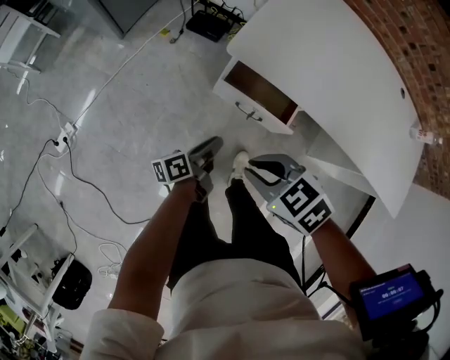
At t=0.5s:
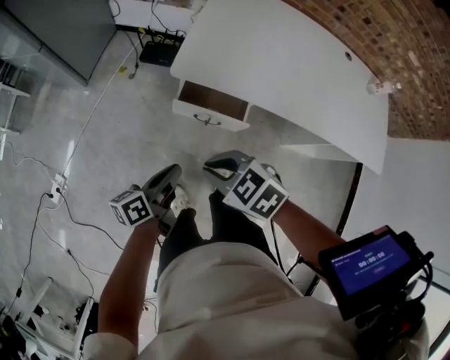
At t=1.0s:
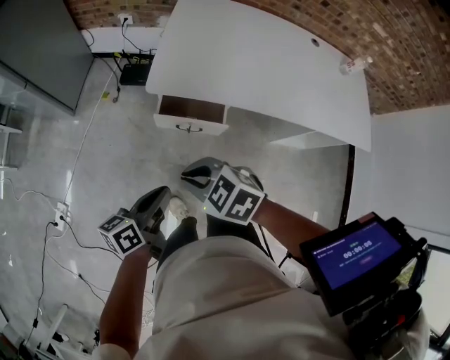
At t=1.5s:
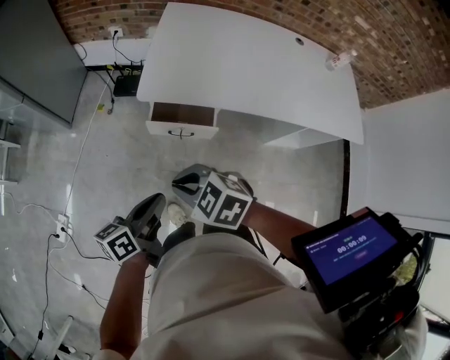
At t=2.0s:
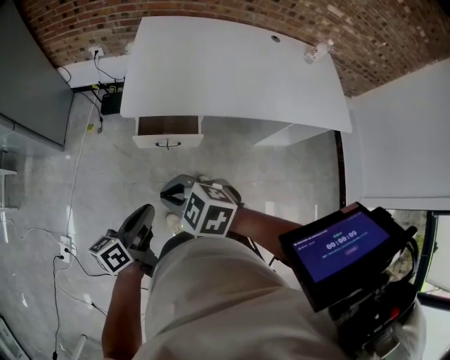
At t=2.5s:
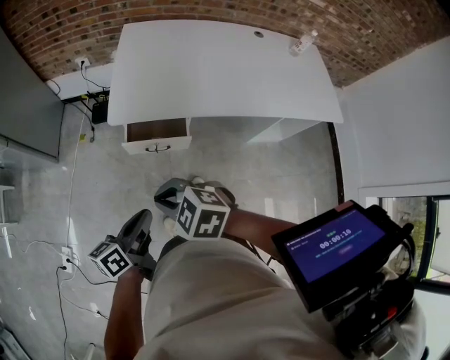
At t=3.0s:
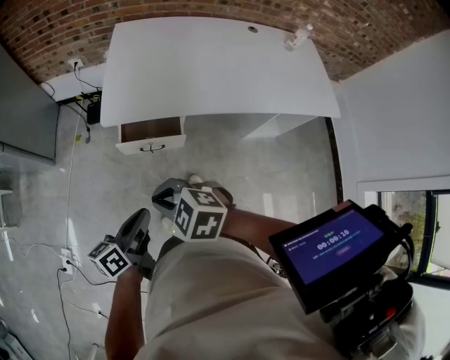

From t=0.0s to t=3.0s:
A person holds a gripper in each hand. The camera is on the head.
From t=0.0s to t=1.5s: The left gripper is displaced upward and backward by roughly 25 cm, and changes its angle by some 30 degrees. The right gripper heads upward, covering about 10 cm.
From t=1.5s to t=3.0s: The grippers stay close to where they were, moving slightly.

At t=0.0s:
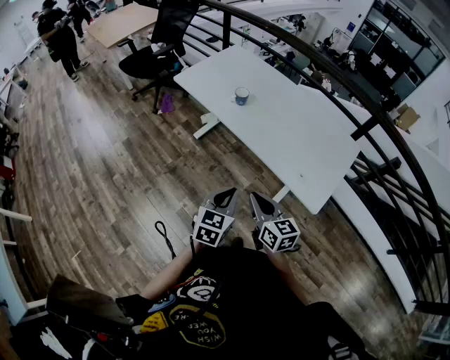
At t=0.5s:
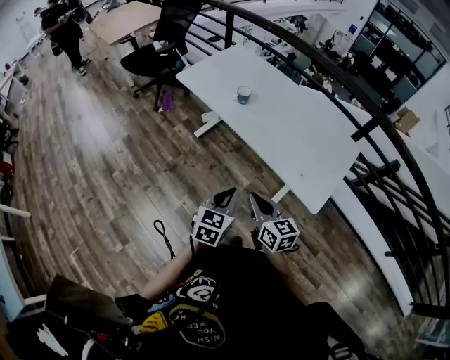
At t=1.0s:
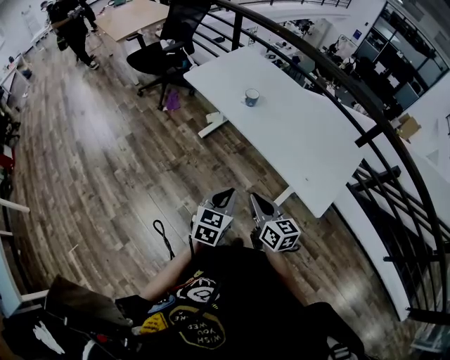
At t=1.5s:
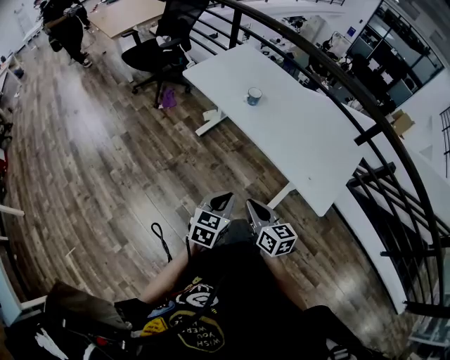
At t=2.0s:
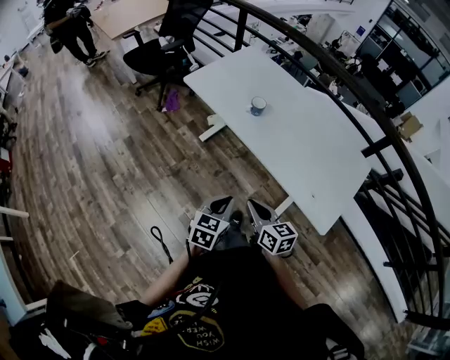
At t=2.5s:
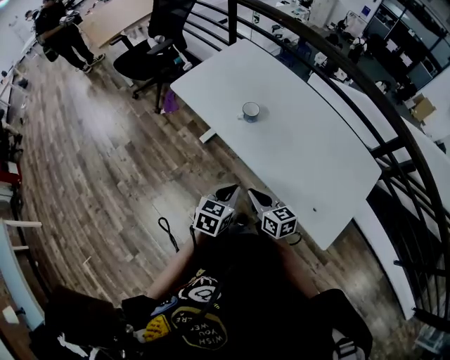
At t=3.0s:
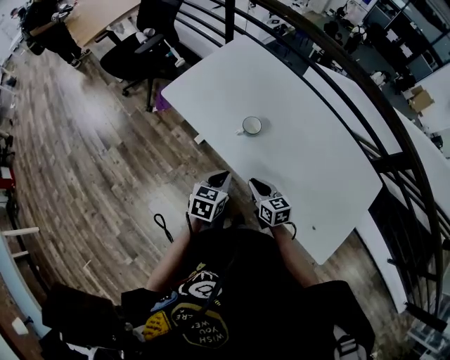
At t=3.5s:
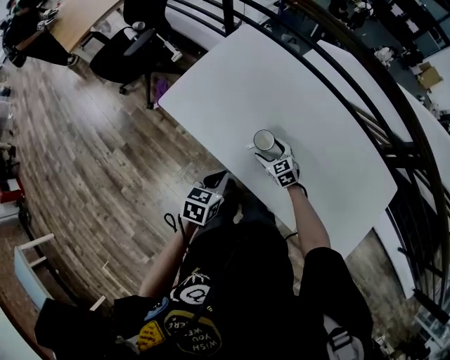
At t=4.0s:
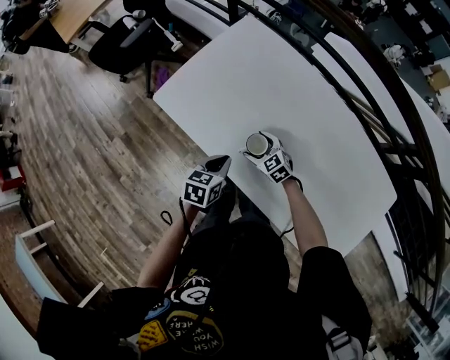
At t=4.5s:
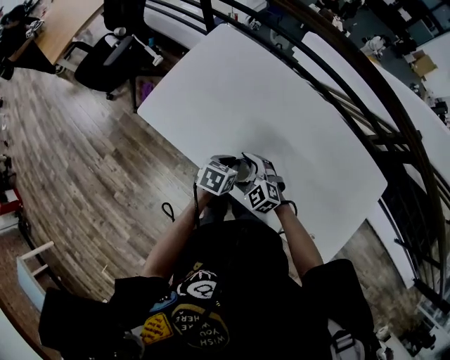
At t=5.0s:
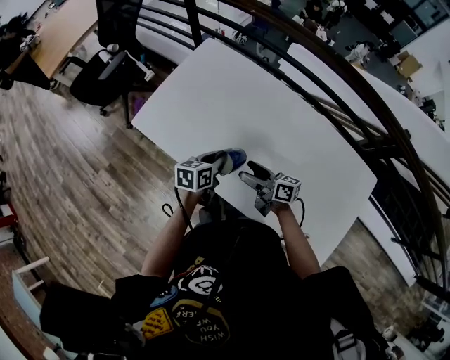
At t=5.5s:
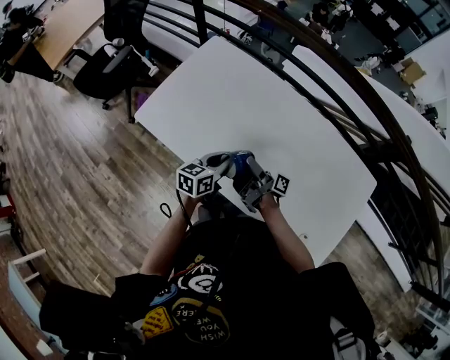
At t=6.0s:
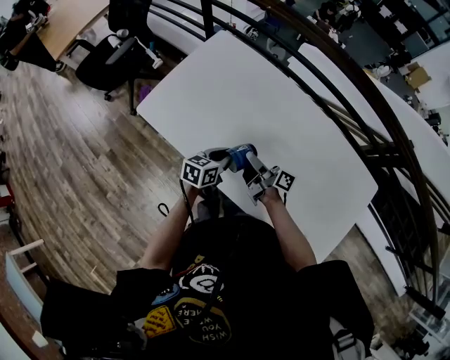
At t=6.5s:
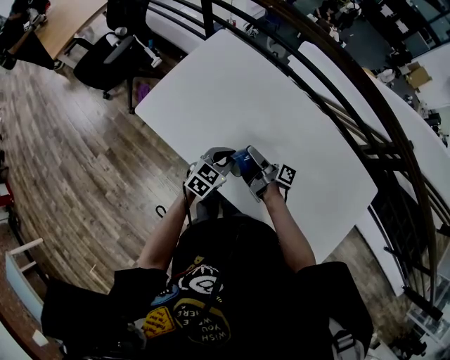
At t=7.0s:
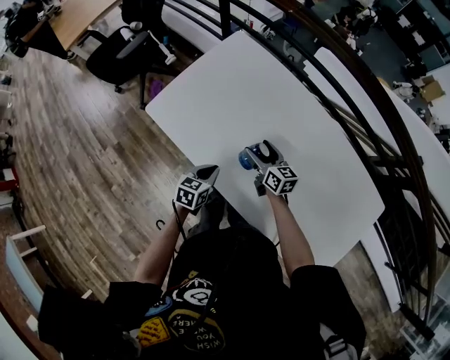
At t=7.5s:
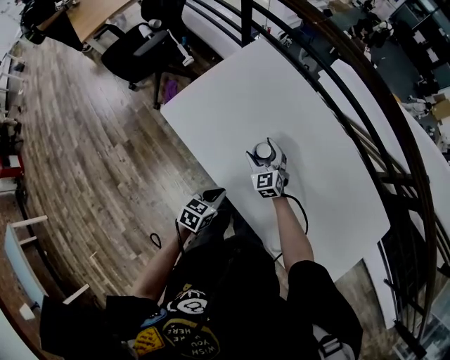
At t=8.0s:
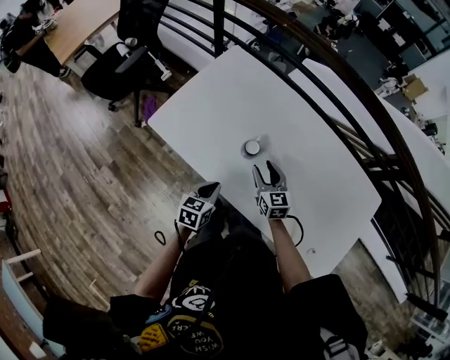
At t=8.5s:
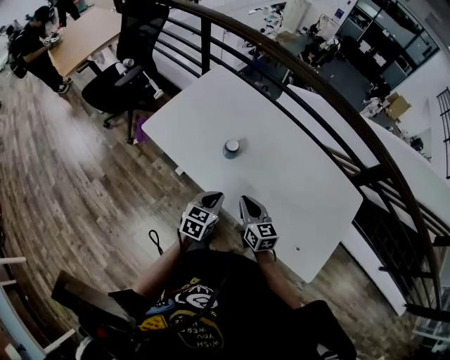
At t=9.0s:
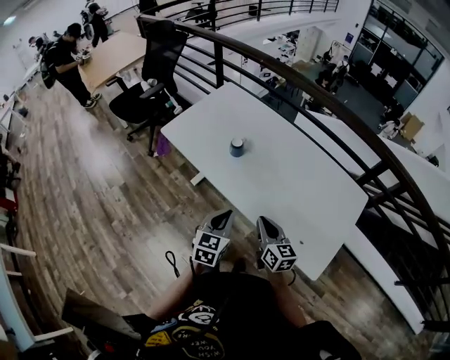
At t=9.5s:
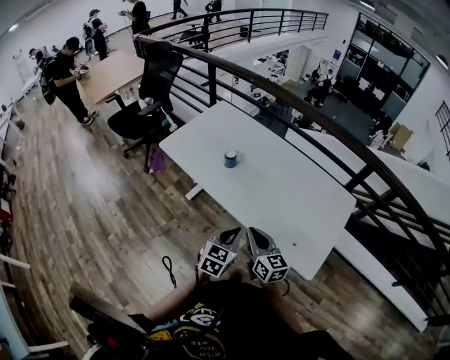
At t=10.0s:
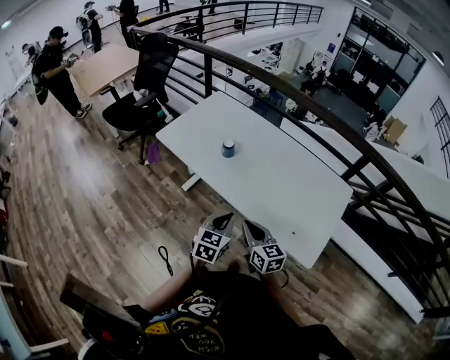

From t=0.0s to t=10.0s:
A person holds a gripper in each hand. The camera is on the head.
From t=0.0s to t=2.0s: The right gripper goes about 15 cm forward, to the left and downward; the left gripper shifts some 15 cm to the left, forward and downward.
From t=2.0s to t=4.0s: The two grippers travel together, forward, roughly 50 cm. The right gripper travels downward by about 25 cm, rotates about 40 degrees, and opens up.
From t=4.0s to t=6.0s: The right gripper is displaced upward and to the right by roughly 15 cm, and twists some 80 degrees clockwise, seen from behind. Meanwhile the left gripper travels to the right by some 10 cm.
From t=6.0s to t=8.0s: The left gripper travels to the left and backward by approximately 15 cm; the right gripper reaches about 10 cm downward, then returns, rotates around the line of its fingers by some 70 degrees, counterclockwise from behind, and closes its fingers.
From t=8.0s to t=10.0s: The right gripper moves backward, some 40 cm, and closes, while the left gripper shifts approximately 40 cm backward, upward and to the right, and turns by about 20 degrees.

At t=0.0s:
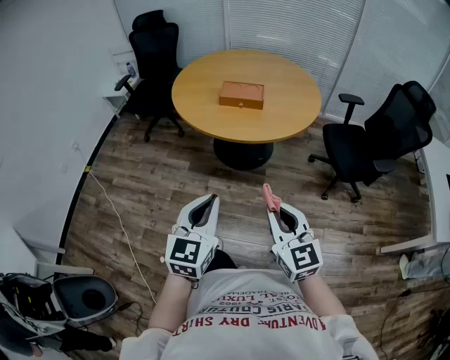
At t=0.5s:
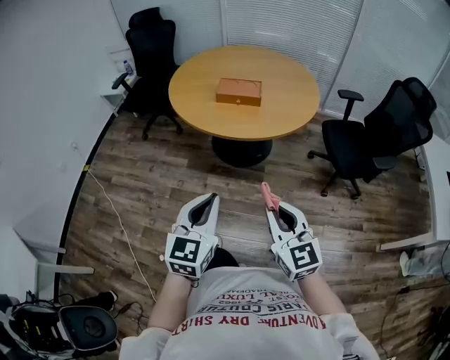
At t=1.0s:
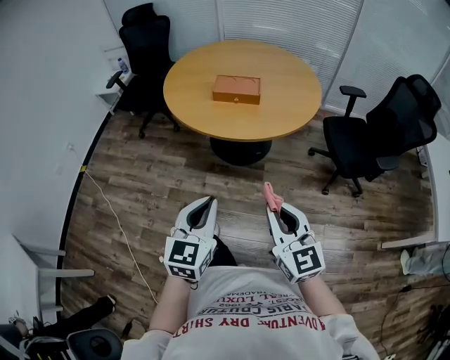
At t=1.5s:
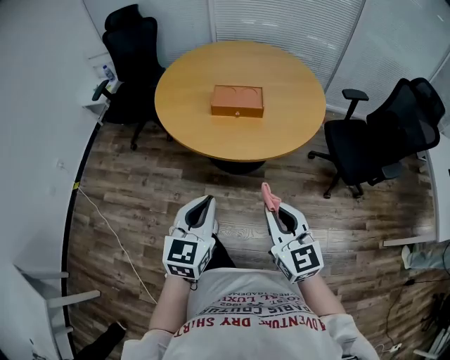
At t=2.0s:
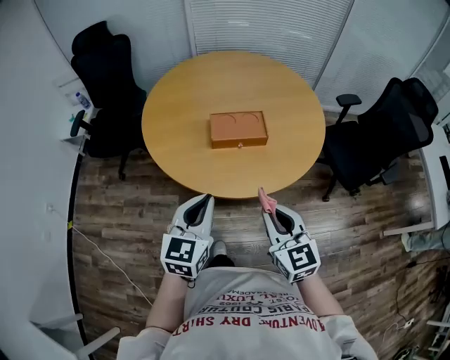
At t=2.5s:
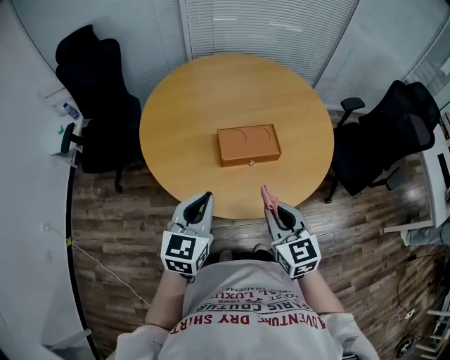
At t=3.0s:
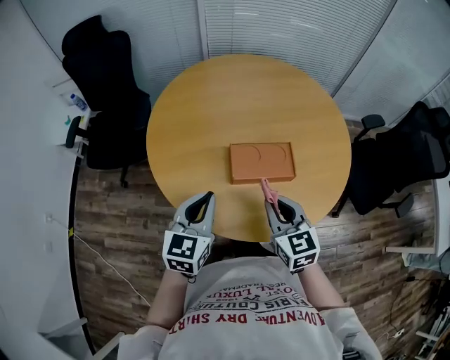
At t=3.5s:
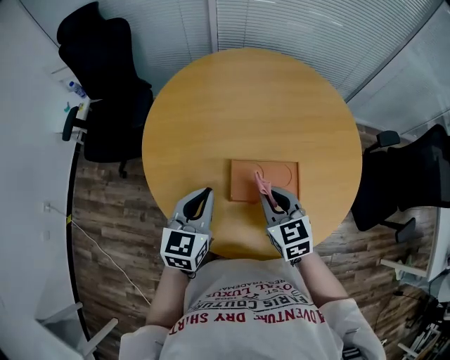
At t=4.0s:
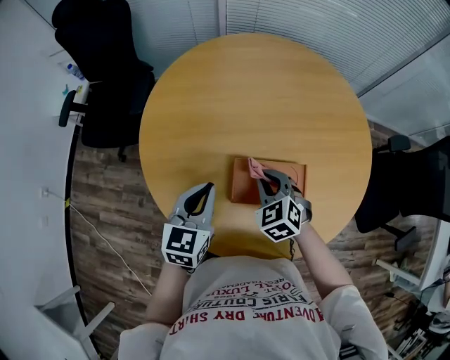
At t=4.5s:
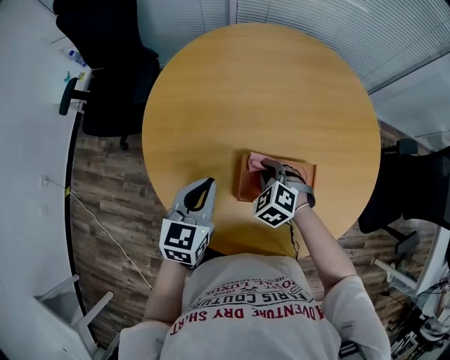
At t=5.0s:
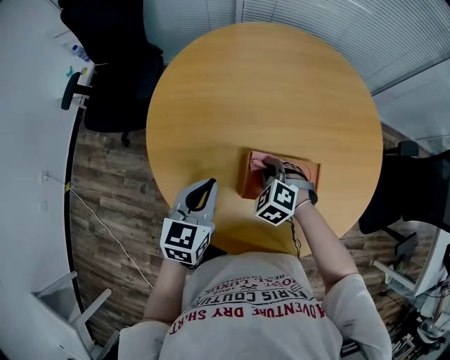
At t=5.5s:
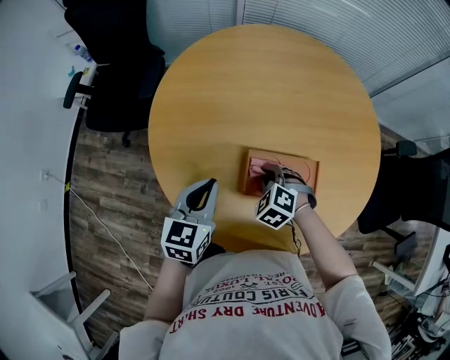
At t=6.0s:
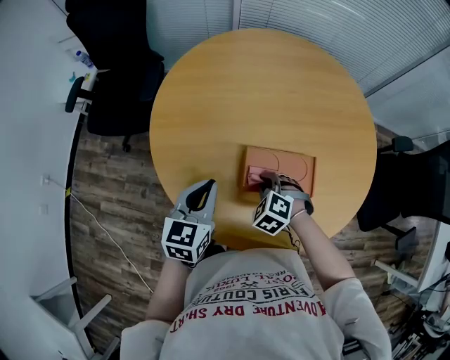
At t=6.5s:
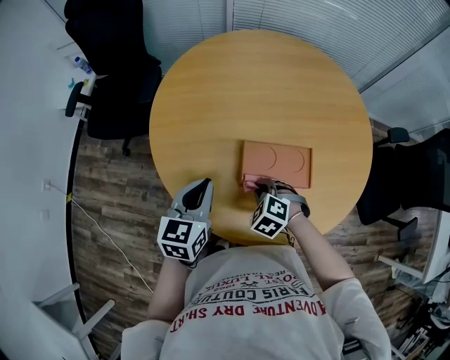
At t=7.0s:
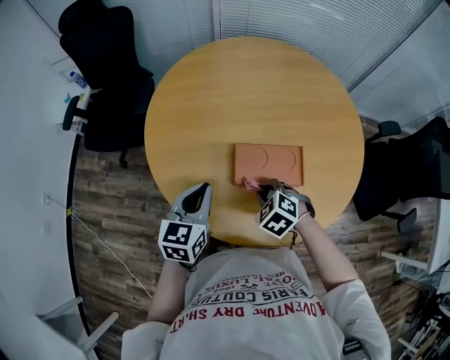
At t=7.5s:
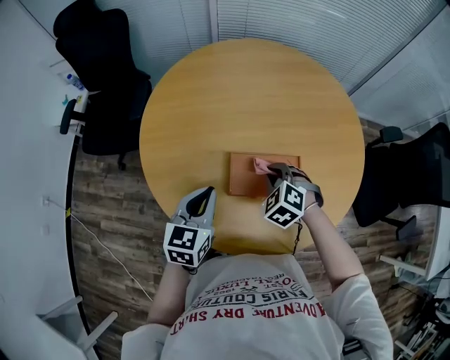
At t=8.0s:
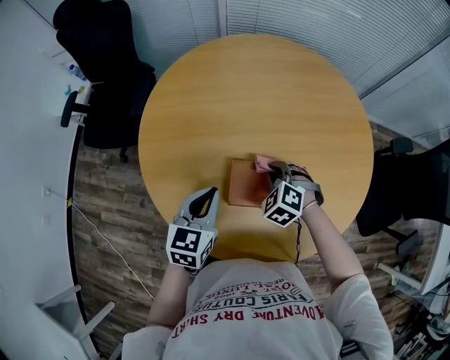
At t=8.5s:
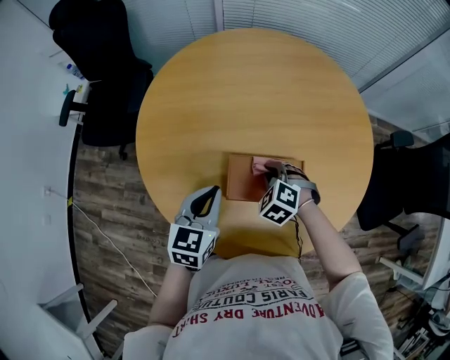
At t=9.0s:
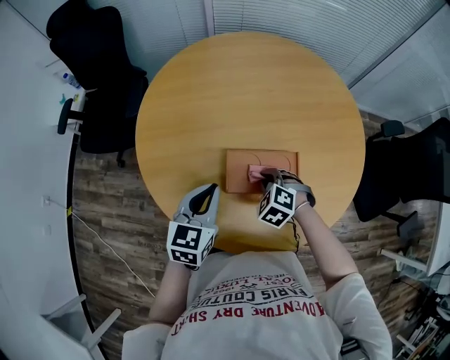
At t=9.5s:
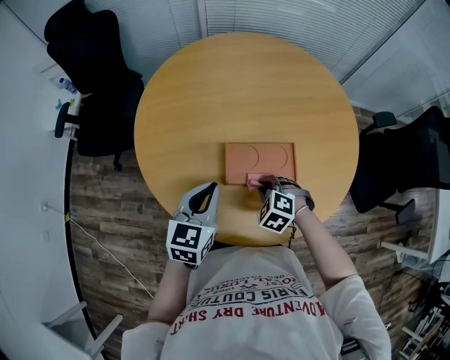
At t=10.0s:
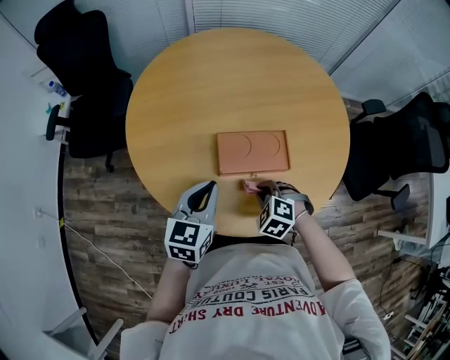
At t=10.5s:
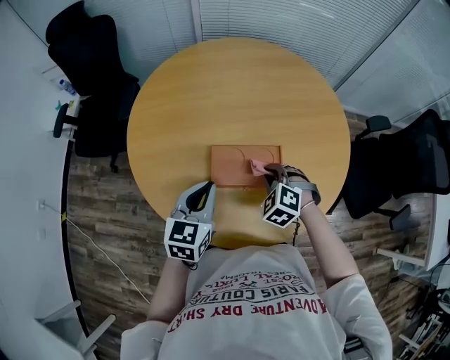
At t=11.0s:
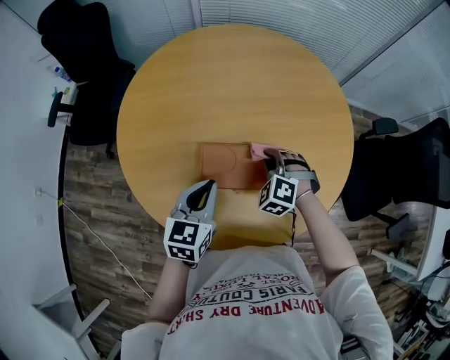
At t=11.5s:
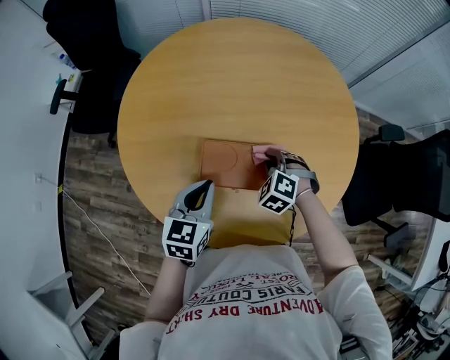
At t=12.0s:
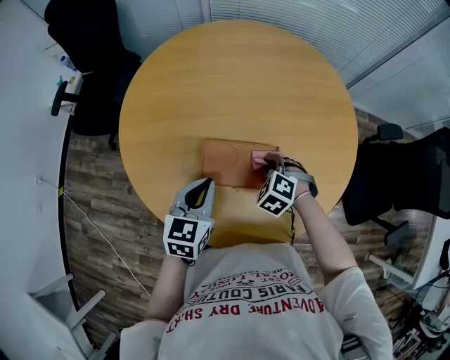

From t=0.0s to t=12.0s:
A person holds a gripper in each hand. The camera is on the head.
From t=0.0s to t=2.0s: Both grippers move forward, some 35 cm.
From t=2.0s to t=4.0s: The grippers both shift forward by approximately 40 cm. The right gripper tips its fingers downward by some 30 degrees.
From t=4.0s to t=6.0s: The right gripper moves downward and backward, approximately 10 cm, and swivels about 30 degrees.
From t=6.0s to t=8.0s: The left gripper heads to the right, covering roughly 5 cm. Meanwhile the right gripper is displaced forward and to the right by some 10 cm.
From t=8.0s to t=10.0s: The left gripper is displaced backward by approximately 10 cm. Meanwhile the right gripper is displaced backward by roughly 20 cm.
From t=10.0s to t=12.0s: The left gripper is displaced to the right and forward by some 10 cm. The right gripper shifts some 15 cm forward and to the right.

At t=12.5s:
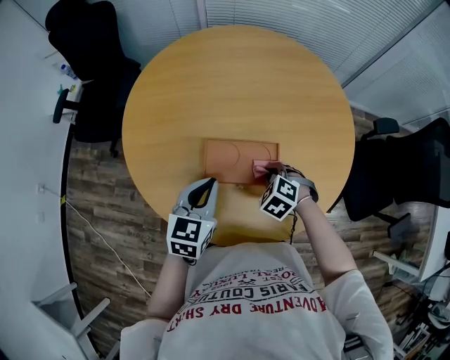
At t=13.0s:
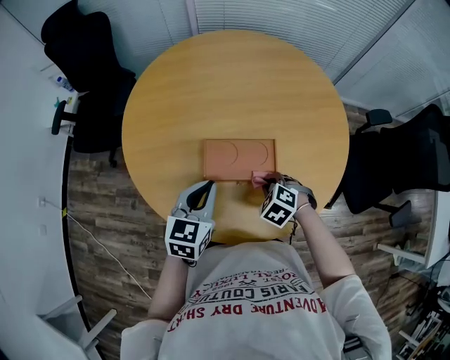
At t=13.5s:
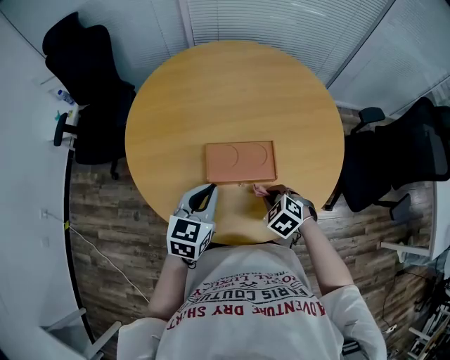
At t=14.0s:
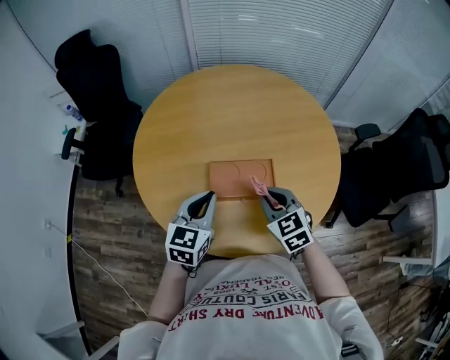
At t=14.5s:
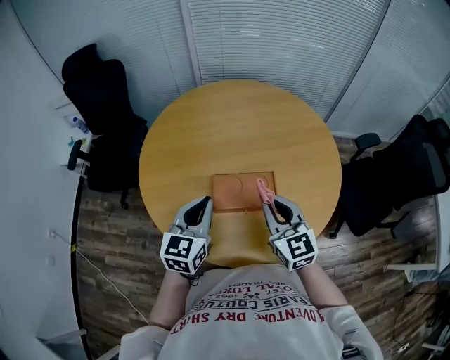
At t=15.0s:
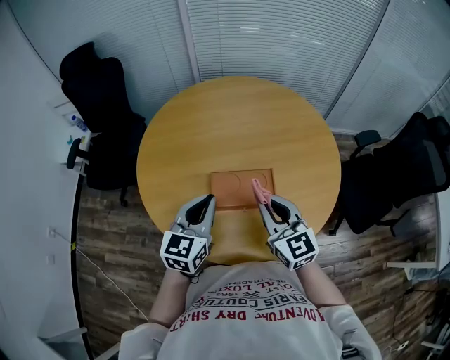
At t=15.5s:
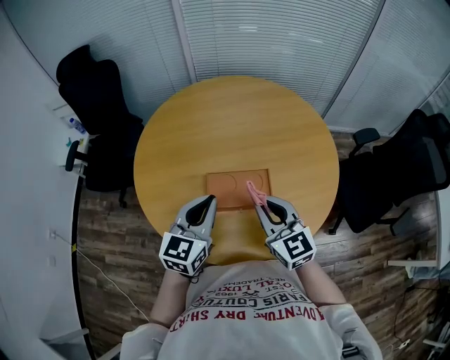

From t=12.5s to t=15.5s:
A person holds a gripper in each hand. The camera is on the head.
From t=12.5s to t=14.0s: The right gripper shifts some 15 cm upward and backward, and points its fingers about 30 degrees further upward, while the left gripper travels upward by roughly 5 cm.
From t=14.0s to t=15.5s: Both grippers move upward, some 5 cm. The right gripper rotates approximately 20 degrees.
